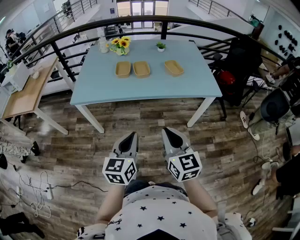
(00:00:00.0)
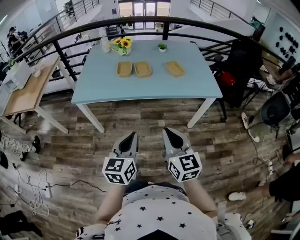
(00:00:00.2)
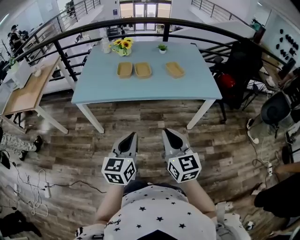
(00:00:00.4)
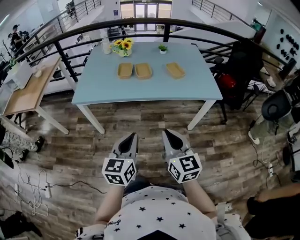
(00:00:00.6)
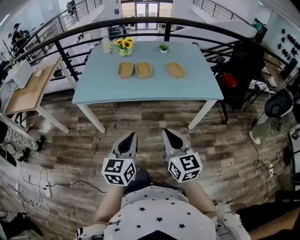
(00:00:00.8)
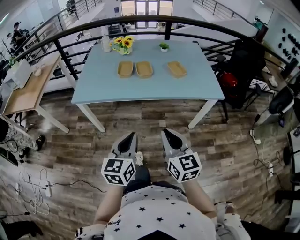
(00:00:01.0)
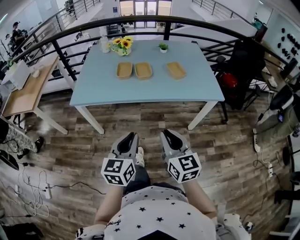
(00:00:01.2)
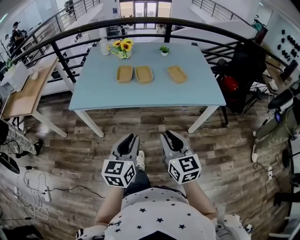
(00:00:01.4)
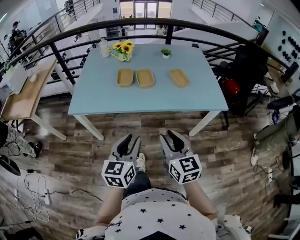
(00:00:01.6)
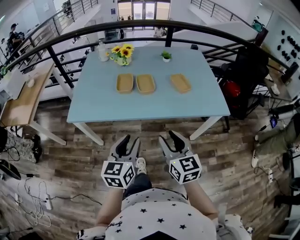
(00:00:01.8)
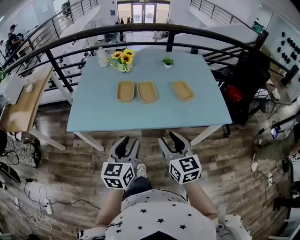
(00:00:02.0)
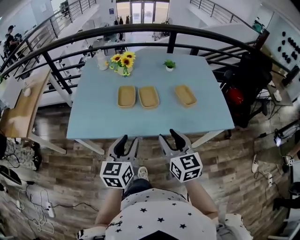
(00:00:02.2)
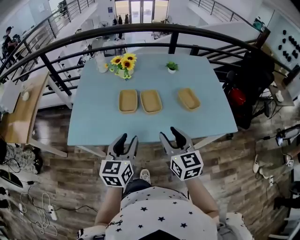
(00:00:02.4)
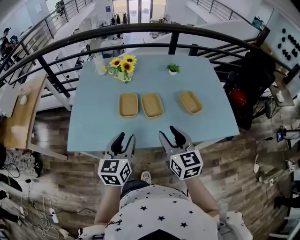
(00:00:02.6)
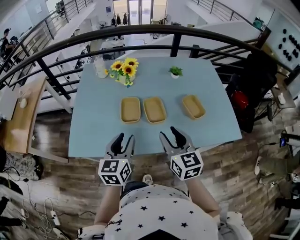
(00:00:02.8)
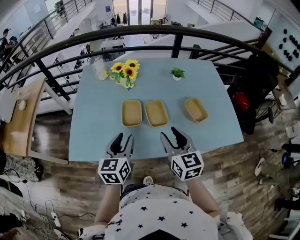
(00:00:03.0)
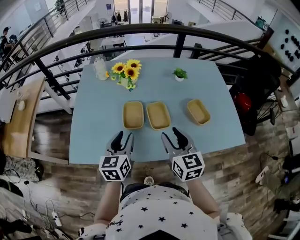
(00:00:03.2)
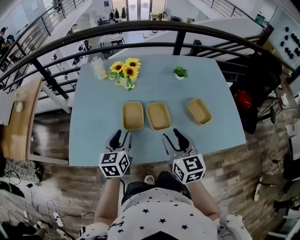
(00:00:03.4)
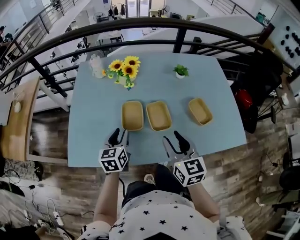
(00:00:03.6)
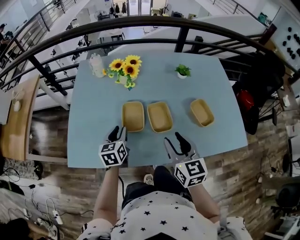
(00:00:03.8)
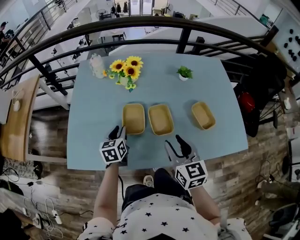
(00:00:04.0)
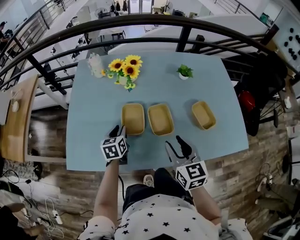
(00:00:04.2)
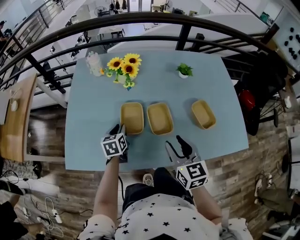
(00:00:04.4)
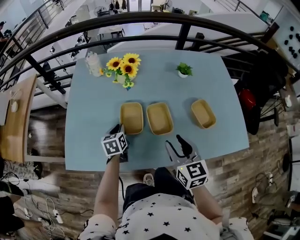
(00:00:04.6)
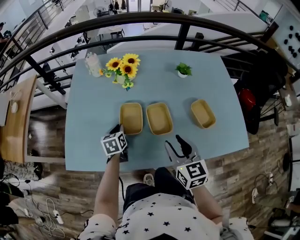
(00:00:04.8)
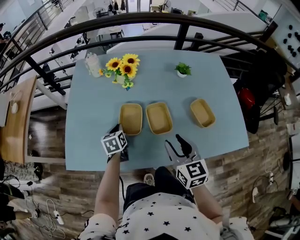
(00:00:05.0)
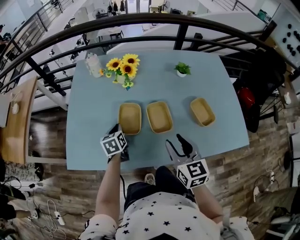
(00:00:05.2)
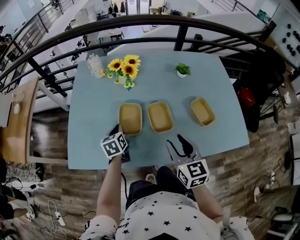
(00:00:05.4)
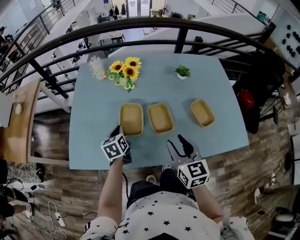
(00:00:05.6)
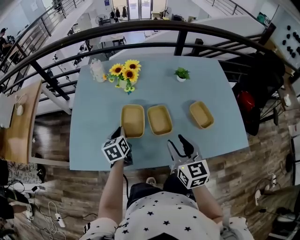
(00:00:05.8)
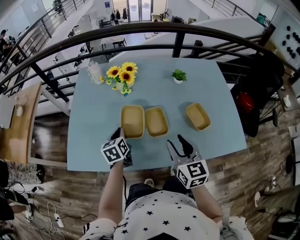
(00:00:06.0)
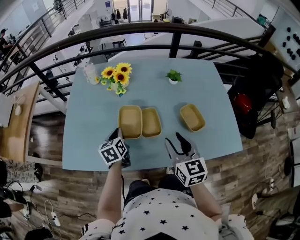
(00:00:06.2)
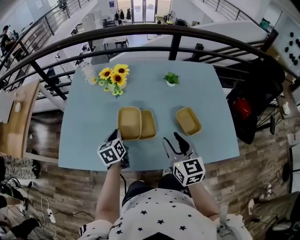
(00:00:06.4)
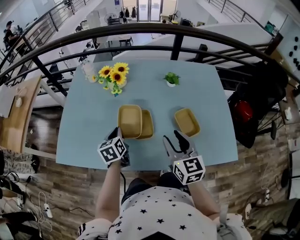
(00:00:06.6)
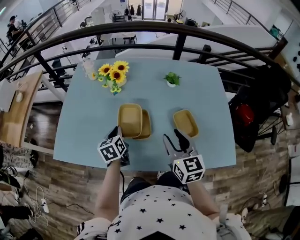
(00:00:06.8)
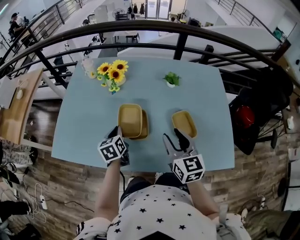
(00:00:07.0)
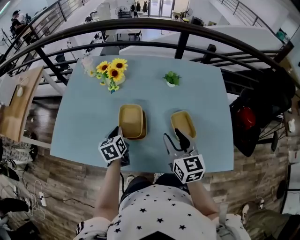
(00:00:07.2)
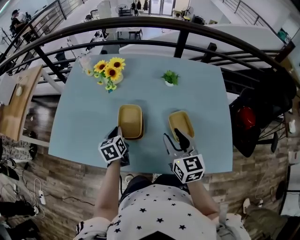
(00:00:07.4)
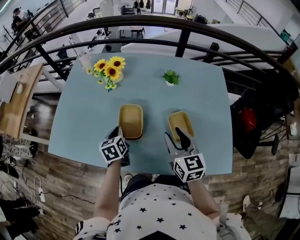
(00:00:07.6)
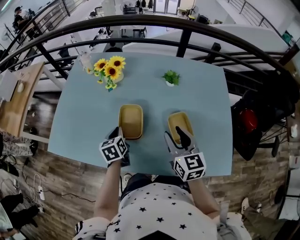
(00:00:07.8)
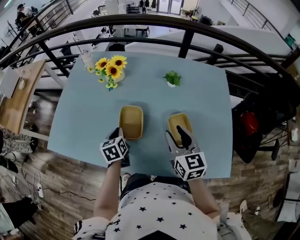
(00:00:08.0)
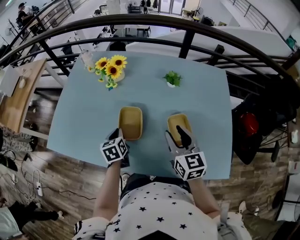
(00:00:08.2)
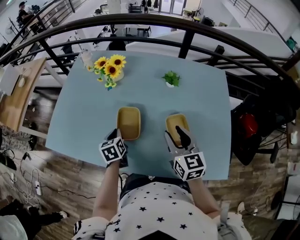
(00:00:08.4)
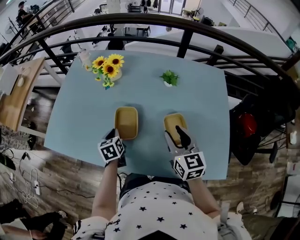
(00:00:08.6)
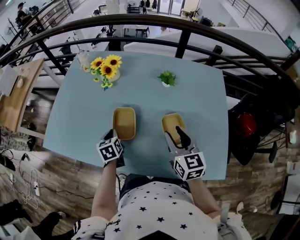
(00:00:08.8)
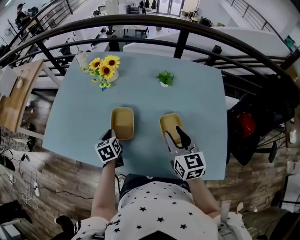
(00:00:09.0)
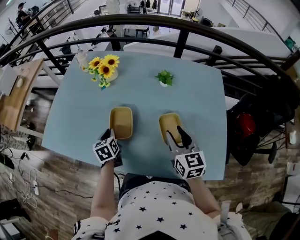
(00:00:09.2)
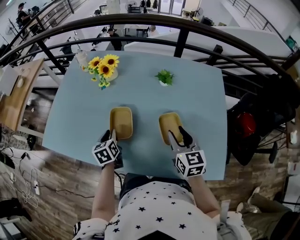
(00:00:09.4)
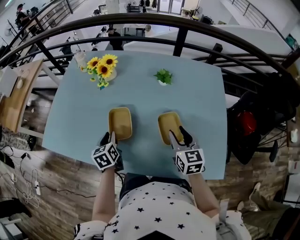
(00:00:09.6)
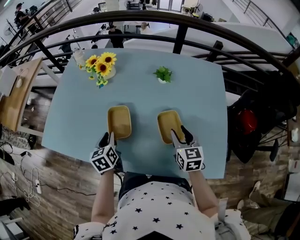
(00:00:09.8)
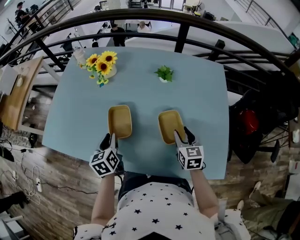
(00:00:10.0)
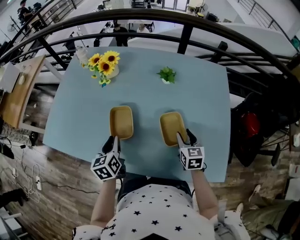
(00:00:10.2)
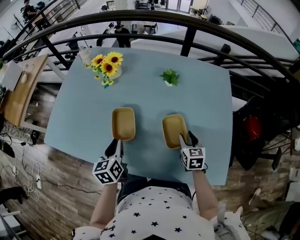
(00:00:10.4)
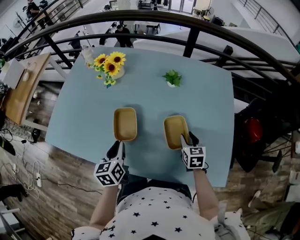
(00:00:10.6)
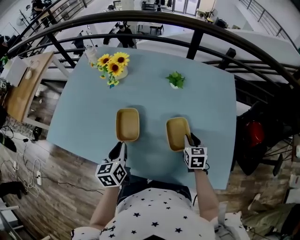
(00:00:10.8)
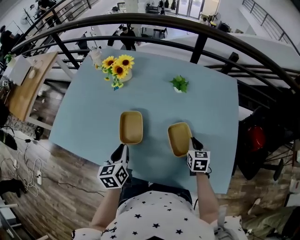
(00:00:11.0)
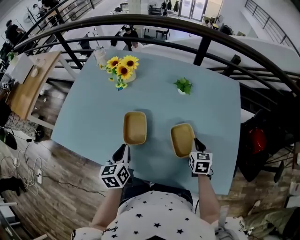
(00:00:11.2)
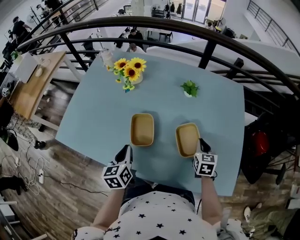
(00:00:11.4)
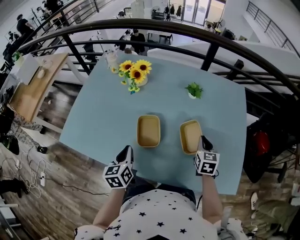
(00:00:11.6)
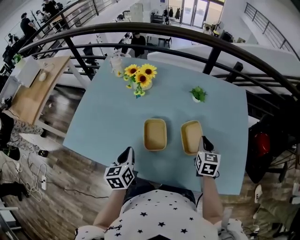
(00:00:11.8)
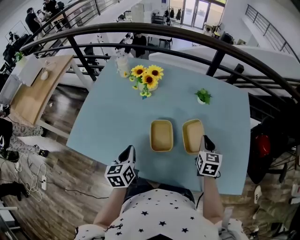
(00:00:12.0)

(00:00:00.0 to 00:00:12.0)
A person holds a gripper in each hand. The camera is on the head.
00:00:00.0 - 00:00:01.6: Both grippers move forward, about 10 cm. The left gripper opens its fingers. Meanwhile the right gripper opens its fingers.
00:00:01.6 - 00:00:03.0: Both grippers travel together forward, about 35 cm.
00:00:03.0 - 00:00:04.4: The left gripper shifts about 25 cm downward and forward, and changes its angle by some 20 degrees; the right gripper goes roughly 10 cm downward and forward.
00:00:04.4 - 00:00:06.0: The left gripper travels upward by roughly 5 cm, and closes up.
00:00:06.0 - 00:00:07.6: The grippers both shift to the right by roughly 15 cm.
00:00:07.6 - 00:00:09.0: The right gripper moves to the right, about 5 cm.
00:00:09.0 - 00:00:10.4: The right gripper travels downward and to the right by about 15 cm, and changes its angle by roughly 20 degrees. Meanwhile the left gripper is displaced backward and upward by roughly 10 cm.
00:00:10.4 - 00:00:12.0: The right gripper goes roughly 15 cm to the left and upward, and closes up, while the left gripper travels to the left by about 10 cm.

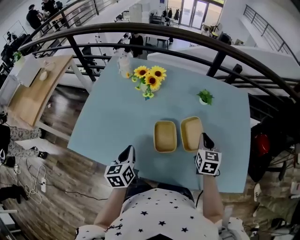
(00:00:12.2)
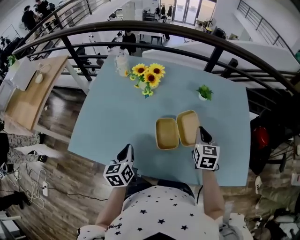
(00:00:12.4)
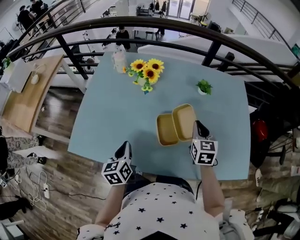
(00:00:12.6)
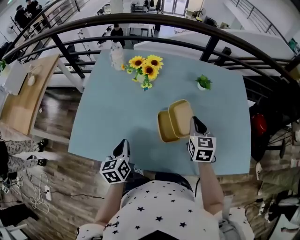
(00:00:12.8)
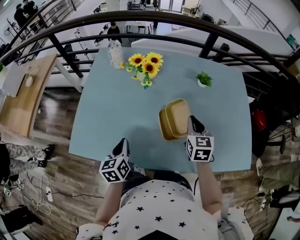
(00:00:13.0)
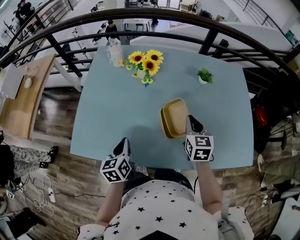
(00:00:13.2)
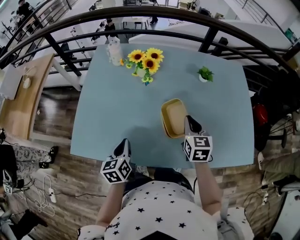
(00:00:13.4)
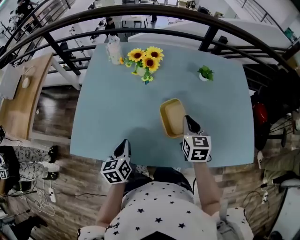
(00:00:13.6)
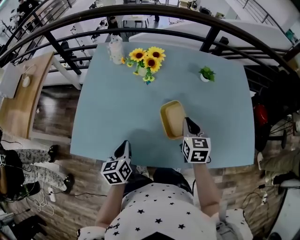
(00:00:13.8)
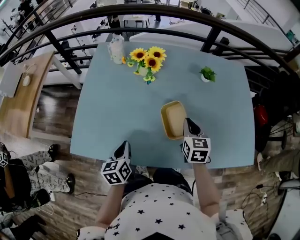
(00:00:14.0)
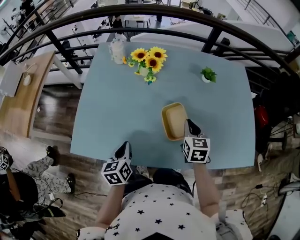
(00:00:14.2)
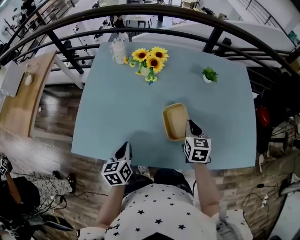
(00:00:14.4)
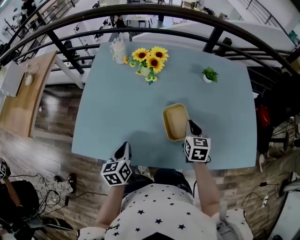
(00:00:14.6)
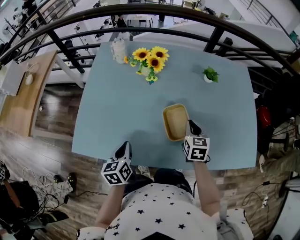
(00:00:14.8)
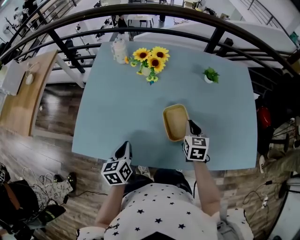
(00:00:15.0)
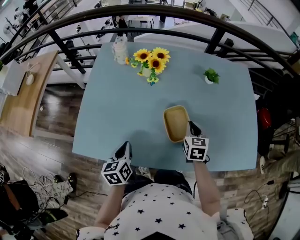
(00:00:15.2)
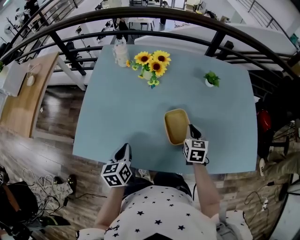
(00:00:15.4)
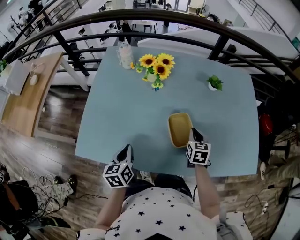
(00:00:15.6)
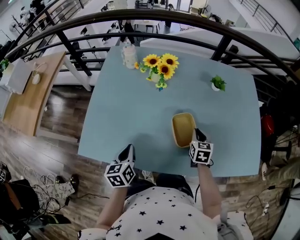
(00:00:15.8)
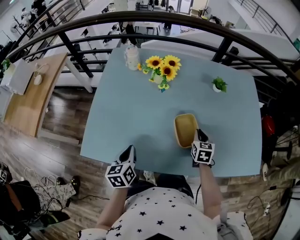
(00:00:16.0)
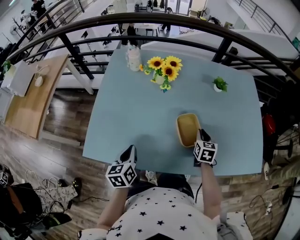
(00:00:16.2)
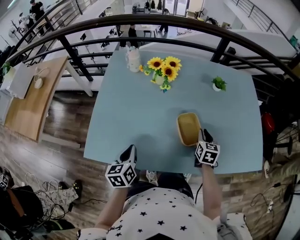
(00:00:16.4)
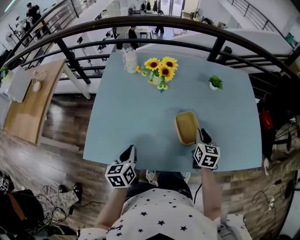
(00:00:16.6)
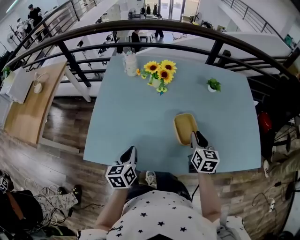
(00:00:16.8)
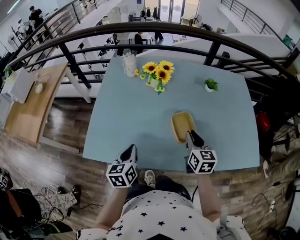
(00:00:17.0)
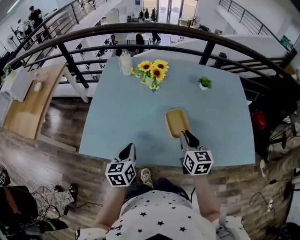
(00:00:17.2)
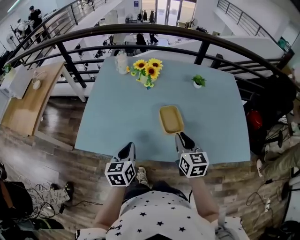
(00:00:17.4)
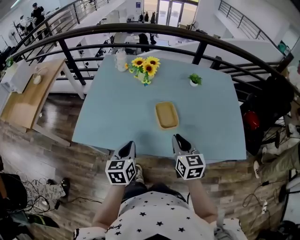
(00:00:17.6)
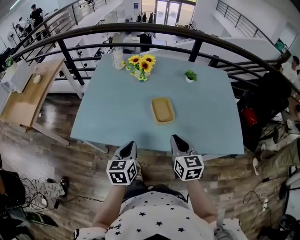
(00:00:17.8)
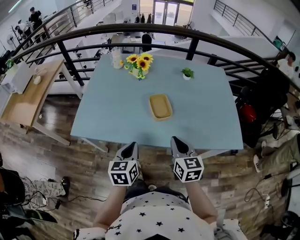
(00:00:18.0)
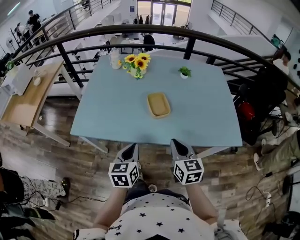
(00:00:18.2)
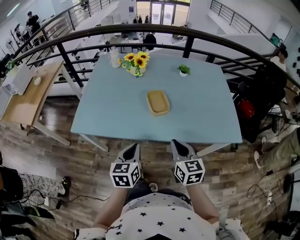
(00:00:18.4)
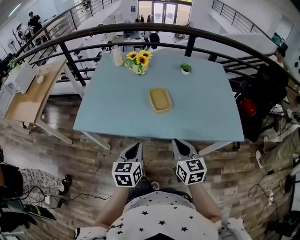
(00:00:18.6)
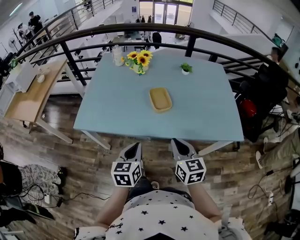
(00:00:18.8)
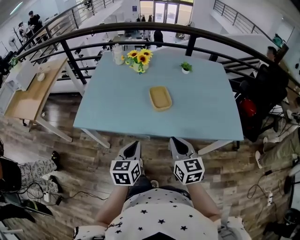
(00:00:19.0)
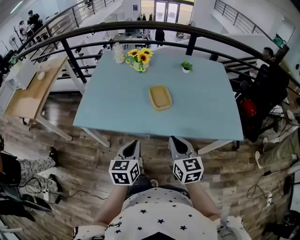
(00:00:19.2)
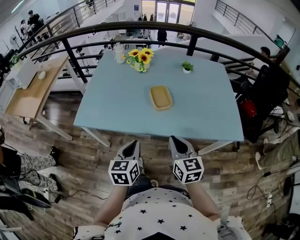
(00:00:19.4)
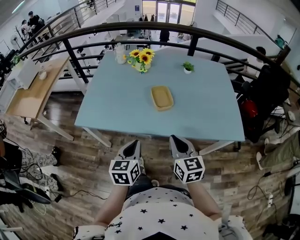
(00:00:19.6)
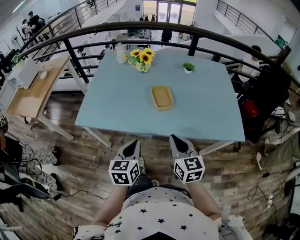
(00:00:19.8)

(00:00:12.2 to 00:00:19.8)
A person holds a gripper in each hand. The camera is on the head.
00:00:12.2 - 00:00:13.8: The left gripper shifts approximately 10 cm to the left. The right gripper travels to the left by about 15 cm.
00:00:13.8 - 00:00:15.2: The right gripper goes about 5 cm downward.
00:00:15.2 - 00:00:16.8: The right gripper changes place by roughly 10 cm.
00:00:16.8 - 00:00:18.2: The right gripper moves backward, about 25 cm. Meanwhile the left gripper heads backward and to the right, covering approximately 25 cm.
00:00:18.2 - 00:00:19.8: There are only small adjustments of the grippers.

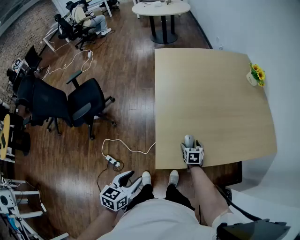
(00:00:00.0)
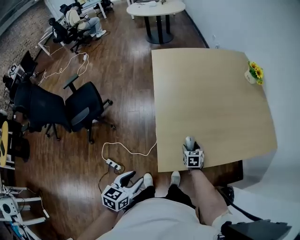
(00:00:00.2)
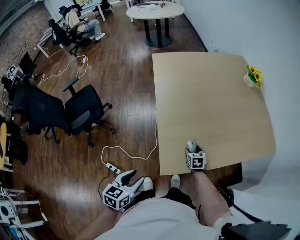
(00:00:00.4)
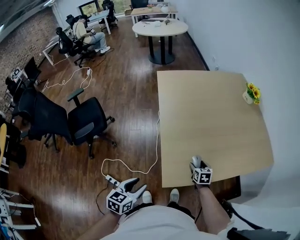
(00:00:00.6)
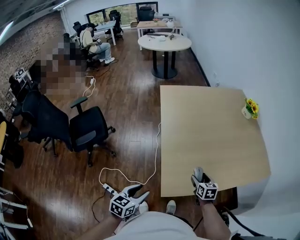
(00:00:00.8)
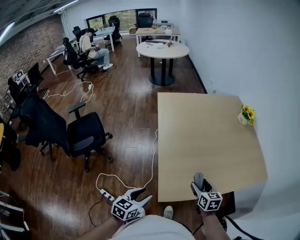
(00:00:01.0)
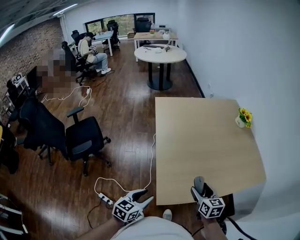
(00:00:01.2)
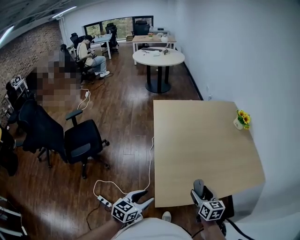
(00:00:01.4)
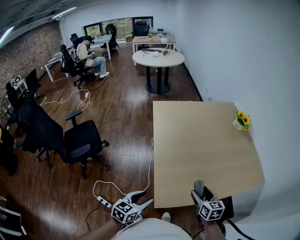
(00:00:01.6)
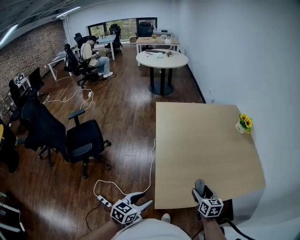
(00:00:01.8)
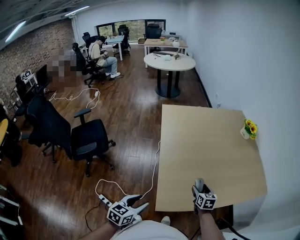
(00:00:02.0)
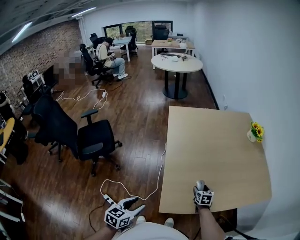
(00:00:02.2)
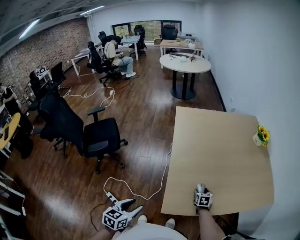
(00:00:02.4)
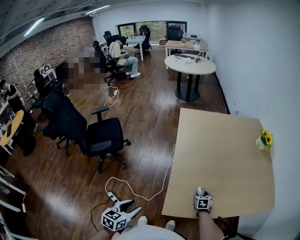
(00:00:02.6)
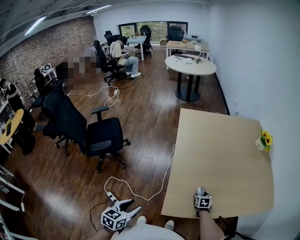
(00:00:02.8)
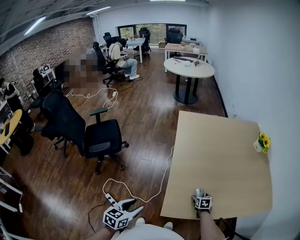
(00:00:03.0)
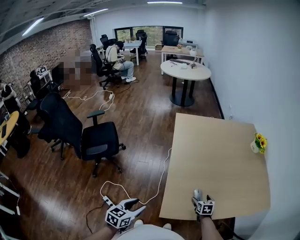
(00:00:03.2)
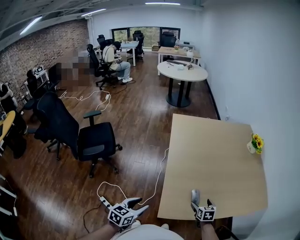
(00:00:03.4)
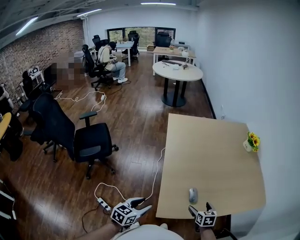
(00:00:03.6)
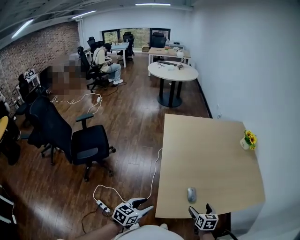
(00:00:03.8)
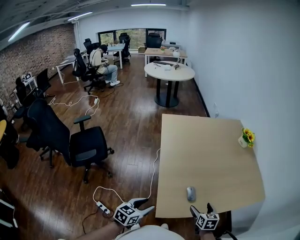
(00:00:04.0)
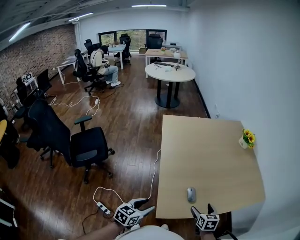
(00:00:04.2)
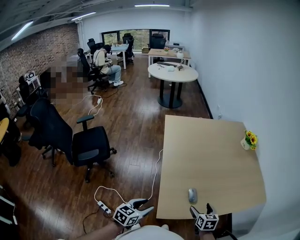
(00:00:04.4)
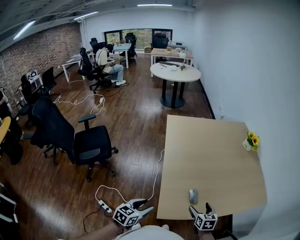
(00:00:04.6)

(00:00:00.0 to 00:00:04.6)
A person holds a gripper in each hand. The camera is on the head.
00:00:00.0 - 00:00:01.6: The right gripper moves upward, roughly 25 cm, and swivels about 20 degrees. The left gripper goes approximately 10 cm forward.
00:00:01.6 - 00:00:03.0: The right gripper heads downward and forward, covering approximately 25 cm, and swivels about 30 degrees; the left gripper shifts approximately 10 cm to the left.
00:00:03.0 - 00:00:04.6: The right gripper travels upward and backward by approximately 20 cm. Meanwhile the left gripper moves to the right and forward, some 5 cm.
